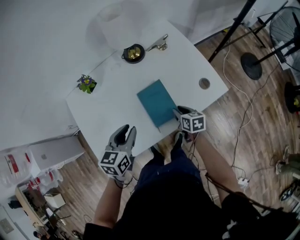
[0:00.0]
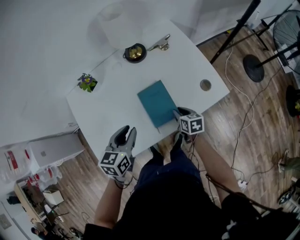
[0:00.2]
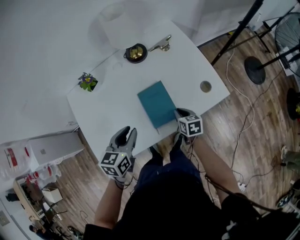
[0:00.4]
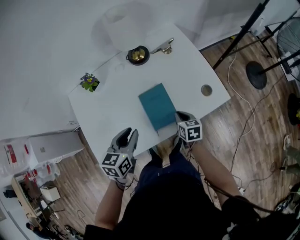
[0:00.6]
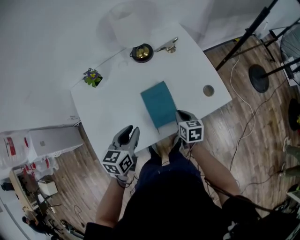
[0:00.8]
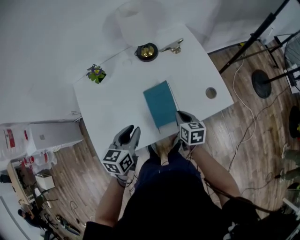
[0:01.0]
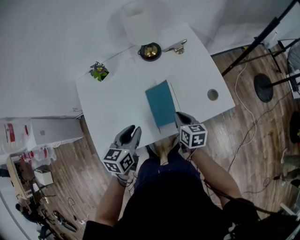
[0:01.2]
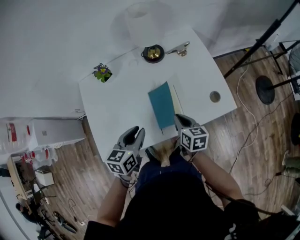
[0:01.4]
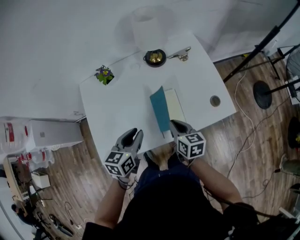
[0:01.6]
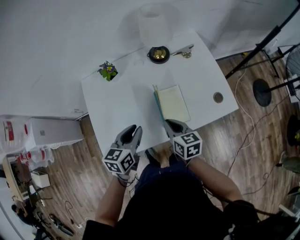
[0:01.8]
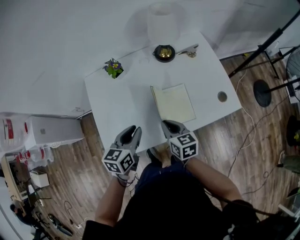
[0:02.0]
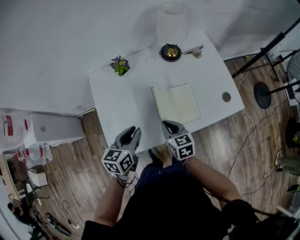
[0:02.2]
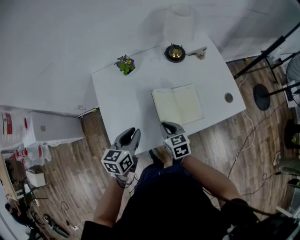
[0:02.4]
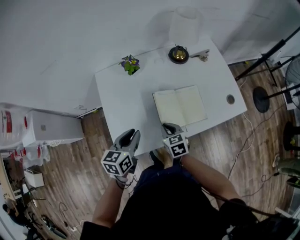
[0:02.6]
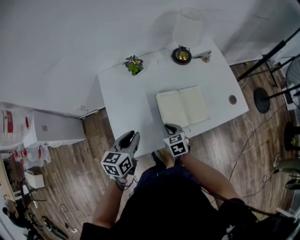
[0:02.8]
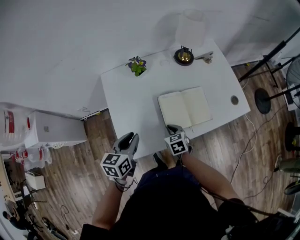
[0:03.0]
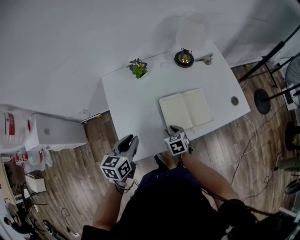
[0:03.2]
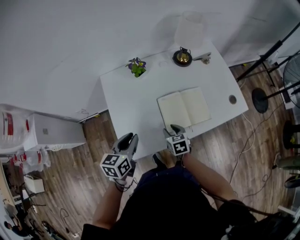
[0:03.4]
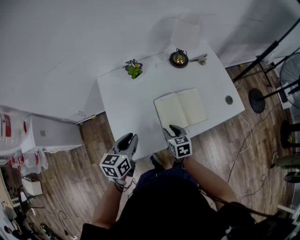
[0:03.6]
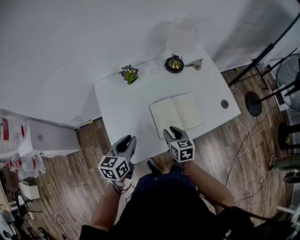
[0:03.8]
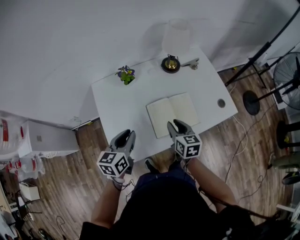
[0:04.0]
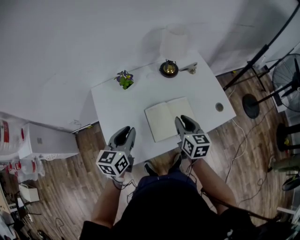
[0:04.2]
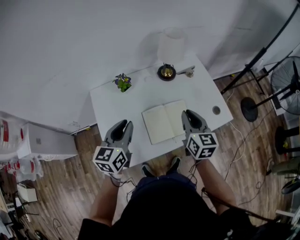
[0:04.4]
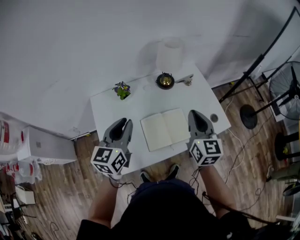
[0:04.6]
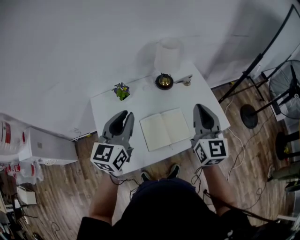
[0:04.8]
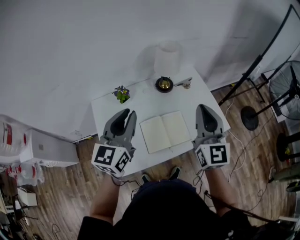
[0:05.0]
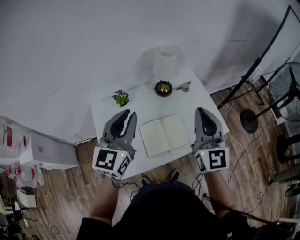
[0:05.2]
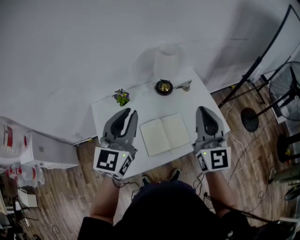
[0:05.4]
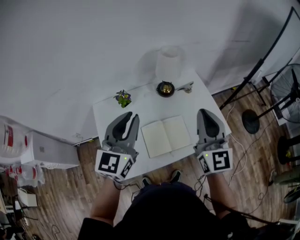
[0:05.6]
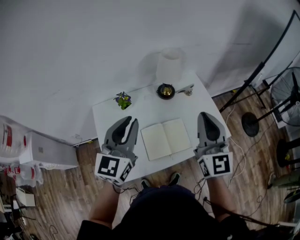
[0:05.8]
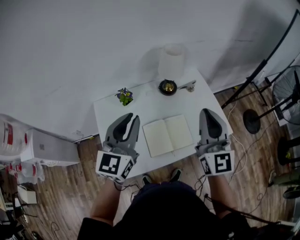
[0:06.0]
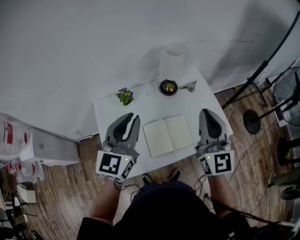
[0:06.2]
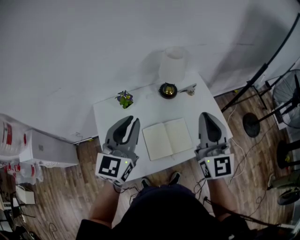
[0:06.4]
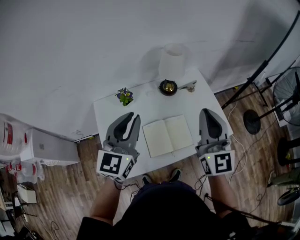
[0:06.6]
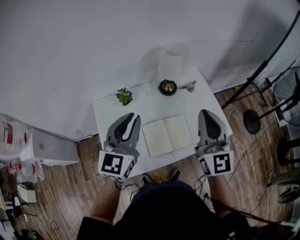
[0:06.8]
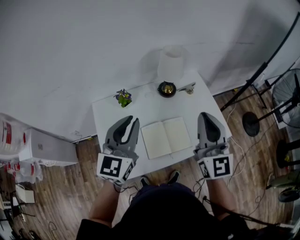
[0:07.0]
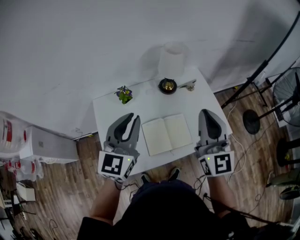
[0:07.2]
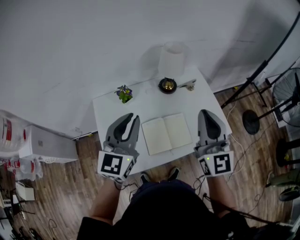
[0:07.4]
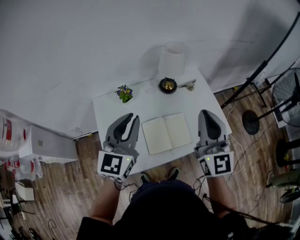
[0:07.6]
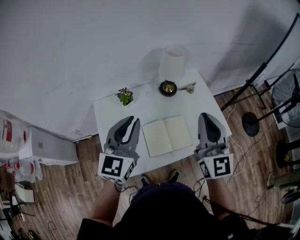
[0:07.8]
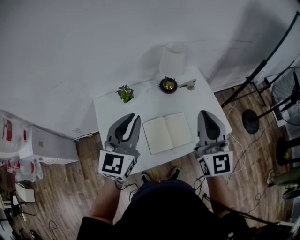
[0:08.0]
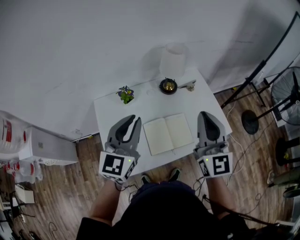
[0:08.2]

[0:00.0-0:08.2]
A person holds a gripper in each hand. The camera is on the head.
0:00.0 to 0:01.6: The right gripper moves upward and to the left, some 15 cm, and closes.
0:01.6 to 0:03.2: The left gripper moves to the left, about 25 cm. Meanwhile the right gripper moves to the left and downward, roughly 25 cm, rotates approximately 30 degrees, and opens.
0:03.2 to 0:05.0: The left gripper travels upward, to the right and forward by some 30 cm, and rotates roughly 40 degrees, while the right gripper heads upward and to the right, covering roughly 50 cm, points its fingers roughly 60 degrees further upward, and closes.
0:05.0 to 0:08.2: The grippers make only small movements.

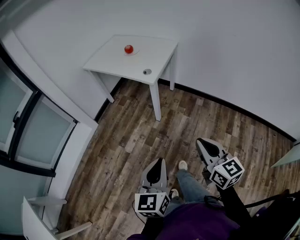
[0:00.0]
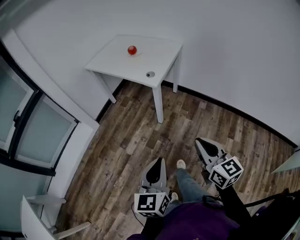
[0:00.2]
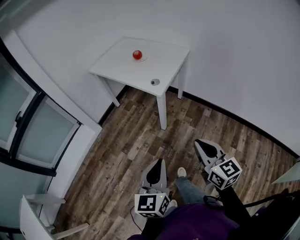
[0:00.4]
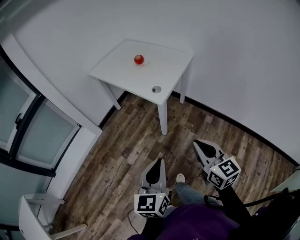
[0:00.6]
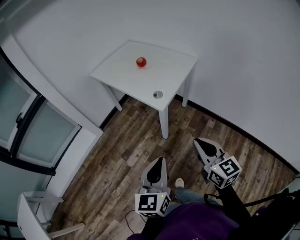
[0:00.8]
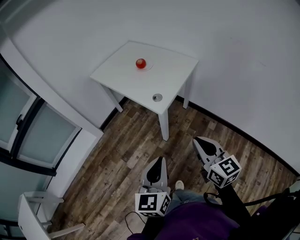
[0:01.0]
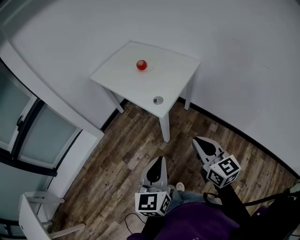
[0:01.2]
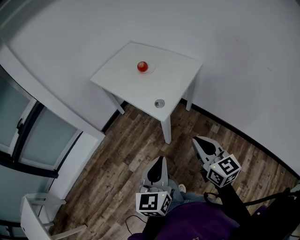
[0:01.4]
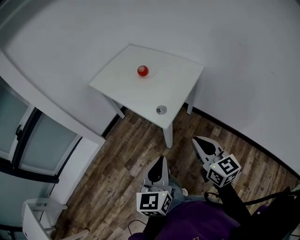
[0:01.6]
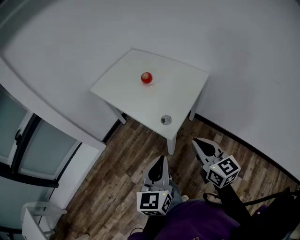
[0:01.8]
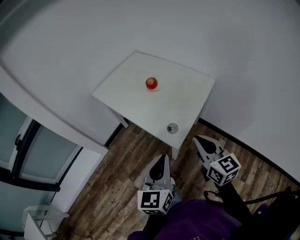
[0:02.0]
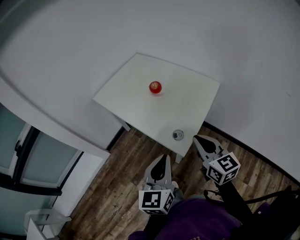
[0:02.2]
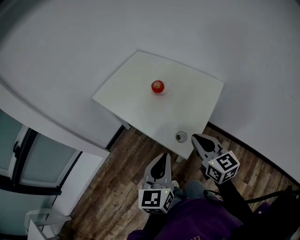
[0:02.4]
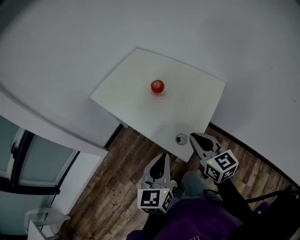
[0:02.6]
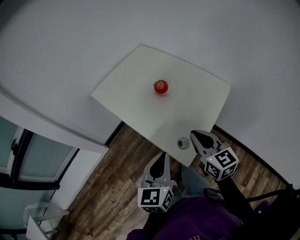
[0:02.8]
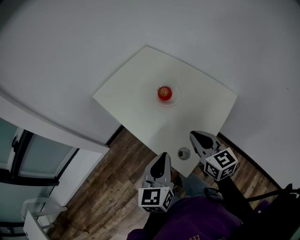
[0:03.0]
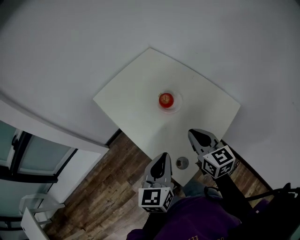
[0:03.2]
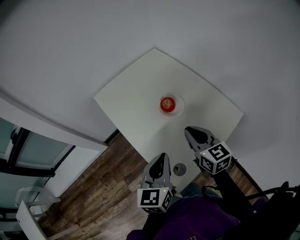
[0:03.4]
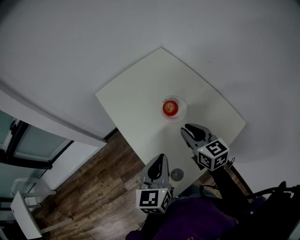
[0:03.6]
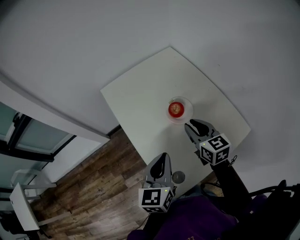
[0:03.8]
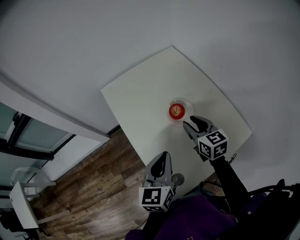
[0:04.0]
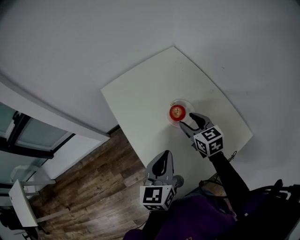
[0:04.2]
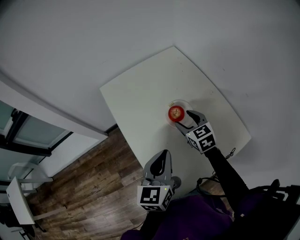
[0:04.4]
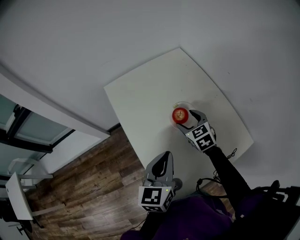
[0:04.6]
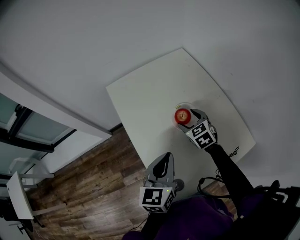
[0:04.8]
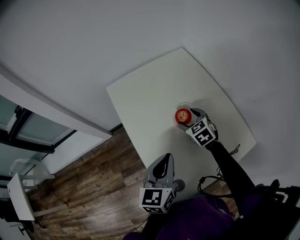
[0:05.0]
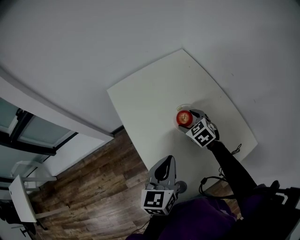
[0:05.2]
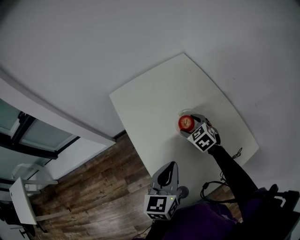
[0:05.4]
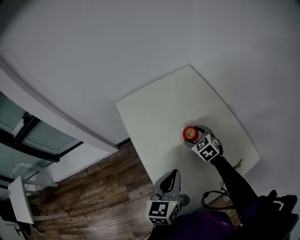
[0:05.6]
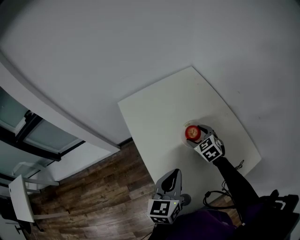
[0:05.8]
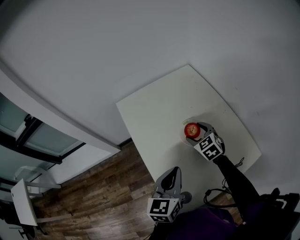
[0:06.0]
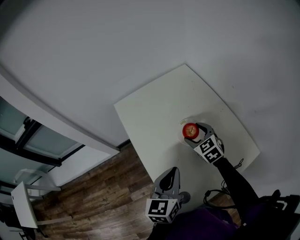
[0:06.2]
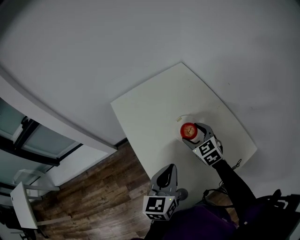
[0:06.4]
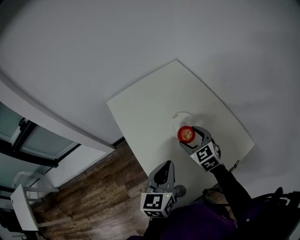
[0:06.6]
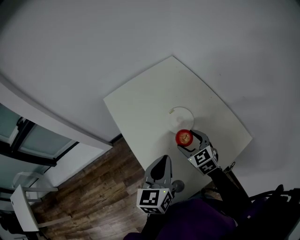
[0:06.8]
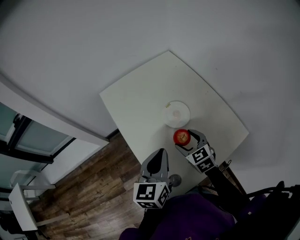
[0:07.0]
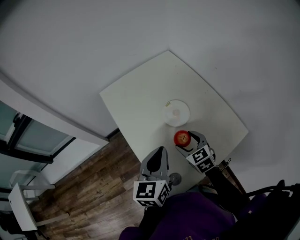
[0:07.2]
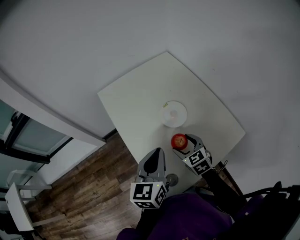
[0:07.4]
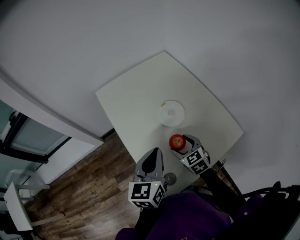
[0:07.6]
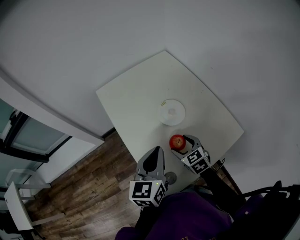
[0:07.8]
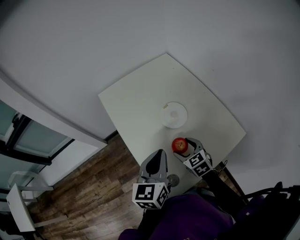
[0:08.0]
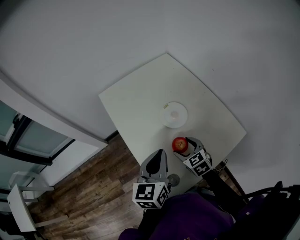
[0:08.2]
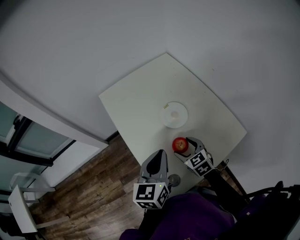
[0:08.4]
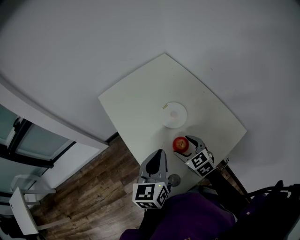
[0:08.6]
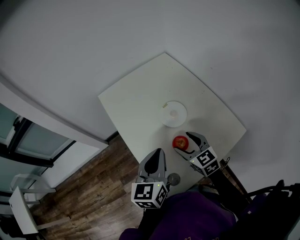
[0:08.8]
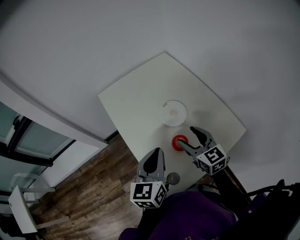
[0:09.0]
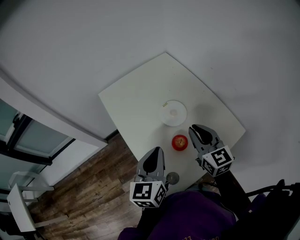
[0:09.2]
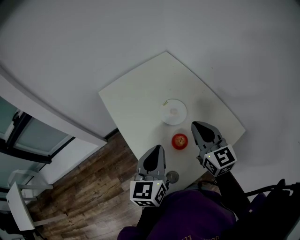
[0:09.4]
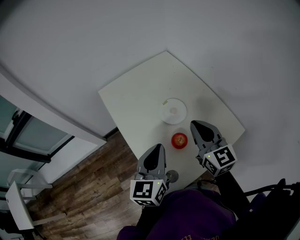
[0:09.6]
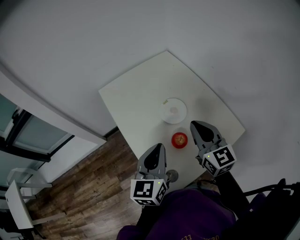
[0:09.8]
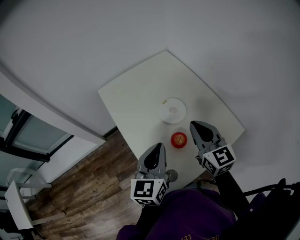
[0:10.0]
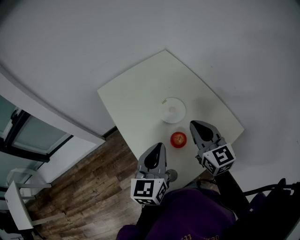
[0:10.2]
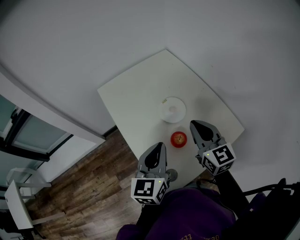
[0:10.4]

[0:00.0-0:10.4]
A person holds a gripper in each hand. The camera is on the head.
0:00.0 to 0:01.4: Both grippers move forward, some 30 cm.
0:01.4 to 0:03.0: The two grippers go roughly 35 cm forward.
0:03.0 to 0:04.4: The right gripper is displaced forward and downward by about 25 cm, turns by approximately 30 degrees, and opens its fingers; the left gripper moves forward and to the right, roughly 15 cm.
0:04.4 to 0:06.0: The right gripper moves roughly 5 cm.
0:06.0 to 0:07.4: The right gripper goes about 15 cm backward.
0:07.4 to 0:09.0: The right gripper travels upward by about 10 cm, and turns by some 20 degrees.
0:09.0 to 0:10.4: The right gripper shifts some 10 cm upward, and closes.

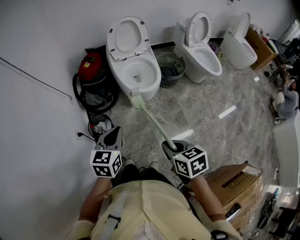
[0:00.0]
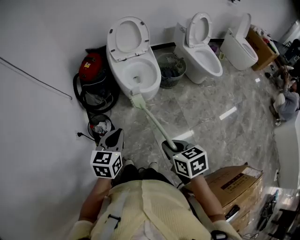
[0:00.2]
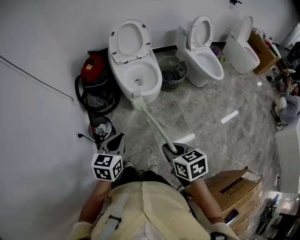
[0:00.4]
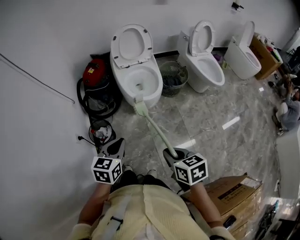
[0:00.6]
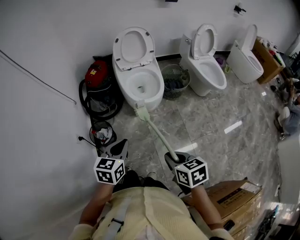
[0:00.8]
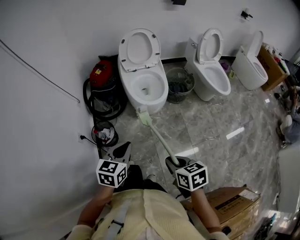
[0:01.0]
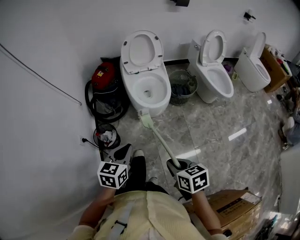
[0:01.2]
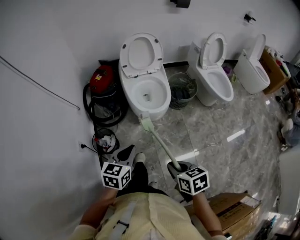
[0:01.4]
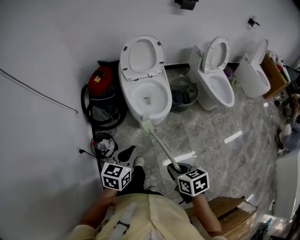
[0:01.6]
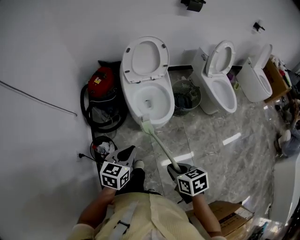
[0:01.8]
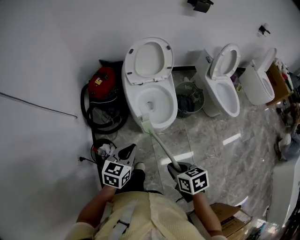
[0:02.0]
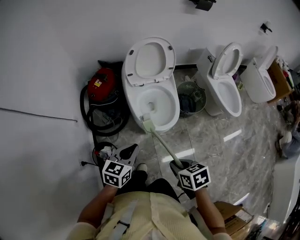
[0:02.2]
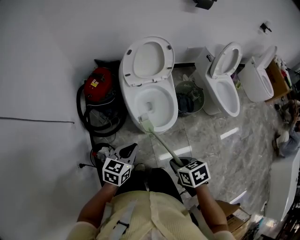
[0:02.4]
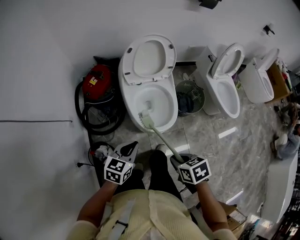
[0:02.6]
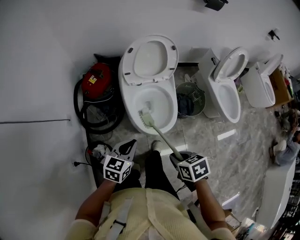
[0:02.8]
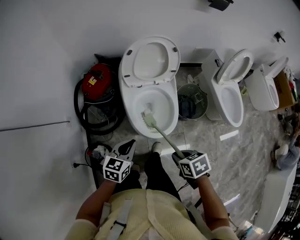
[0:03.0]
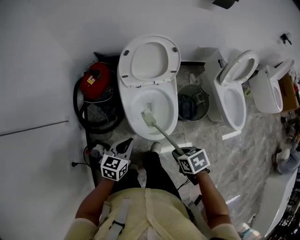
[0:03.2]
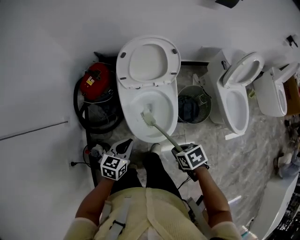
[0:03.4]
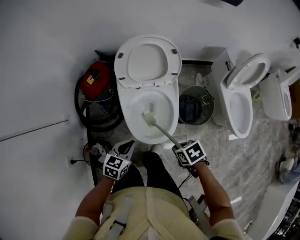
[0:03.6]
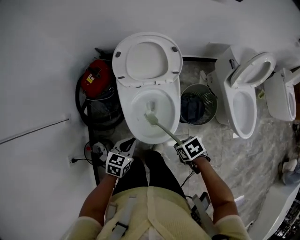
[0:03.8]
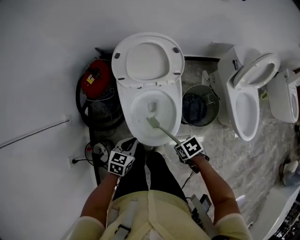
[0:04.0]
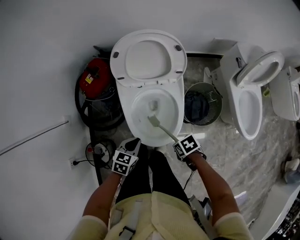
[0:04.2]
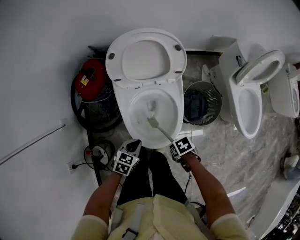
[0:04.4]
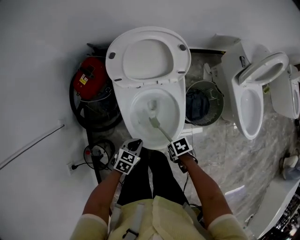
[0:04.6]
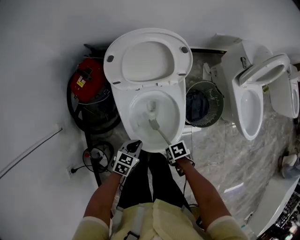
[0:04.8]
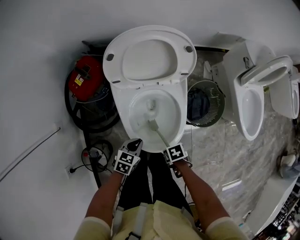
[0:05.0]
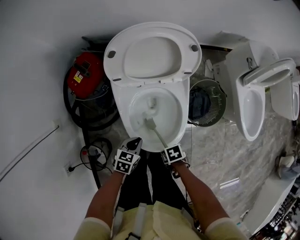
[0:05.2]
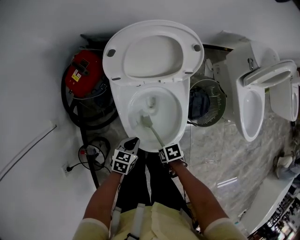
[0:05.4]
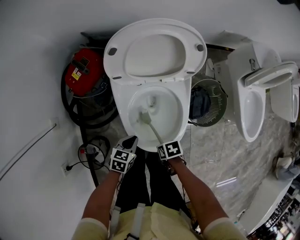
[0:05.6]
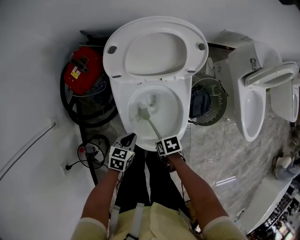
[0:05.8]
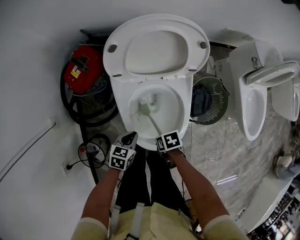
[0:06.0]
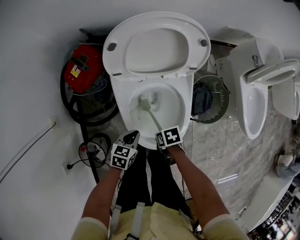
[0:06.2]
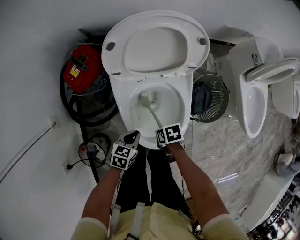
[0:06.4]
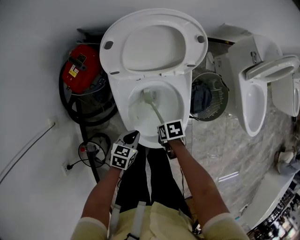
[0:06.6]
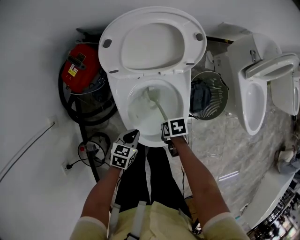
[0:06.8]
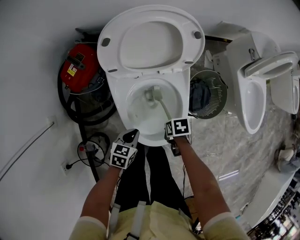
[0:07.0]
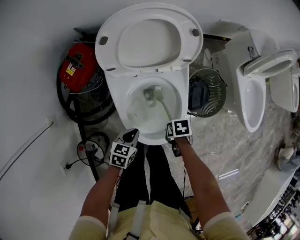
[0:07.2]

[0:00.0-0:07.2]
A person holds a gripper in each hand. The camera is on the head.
0:00.0 to 0:01.4: The left gripper changes place by roughly 10 cm.
0:01.4 to 0:02.8: The left gripper changes place by roughly 30 cm.
0:02.8 to 0:04.4: The left gripper moves downward, approximately 20 cm, and changes its angle by approximately 20 degrees.
0:04.4 to 0:05.8: The left gripper changes place by roughly 10 cm.
